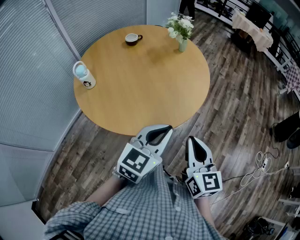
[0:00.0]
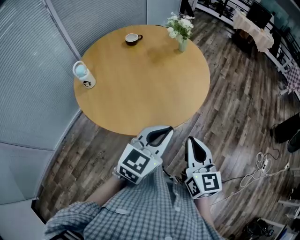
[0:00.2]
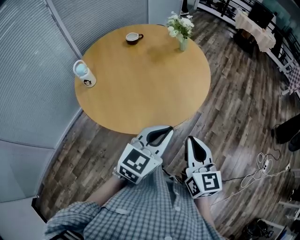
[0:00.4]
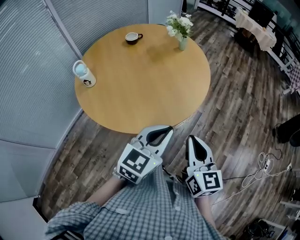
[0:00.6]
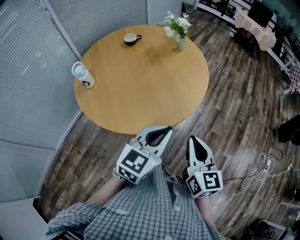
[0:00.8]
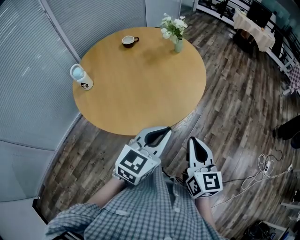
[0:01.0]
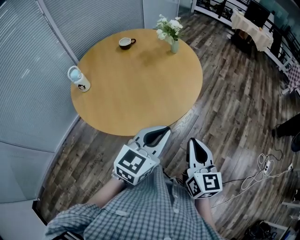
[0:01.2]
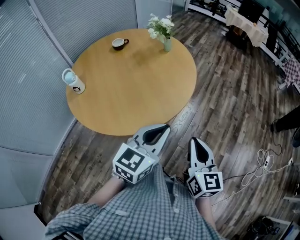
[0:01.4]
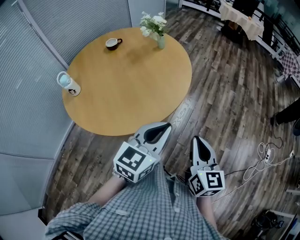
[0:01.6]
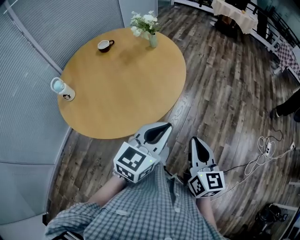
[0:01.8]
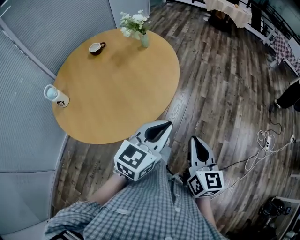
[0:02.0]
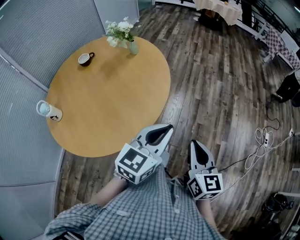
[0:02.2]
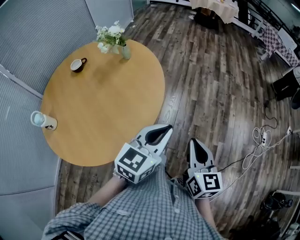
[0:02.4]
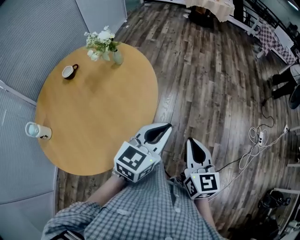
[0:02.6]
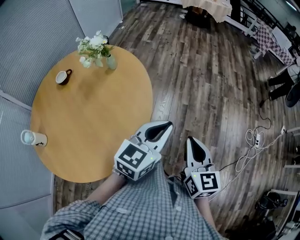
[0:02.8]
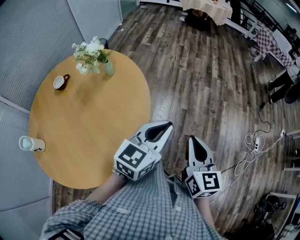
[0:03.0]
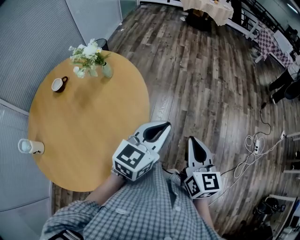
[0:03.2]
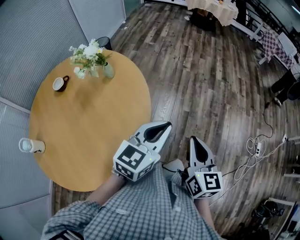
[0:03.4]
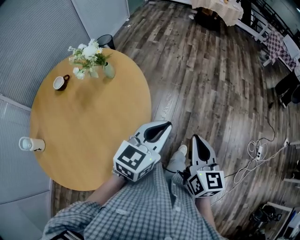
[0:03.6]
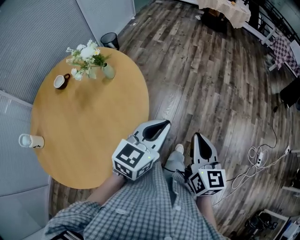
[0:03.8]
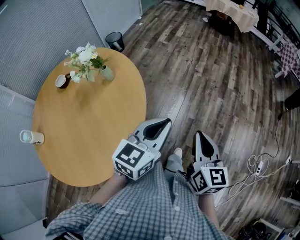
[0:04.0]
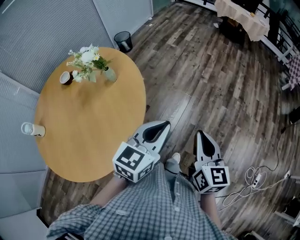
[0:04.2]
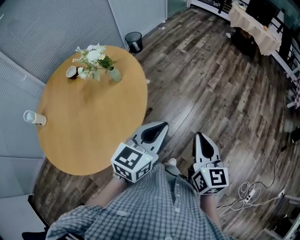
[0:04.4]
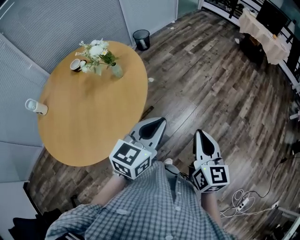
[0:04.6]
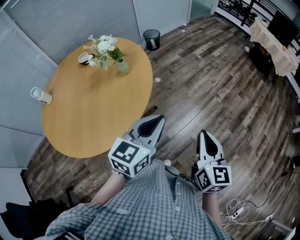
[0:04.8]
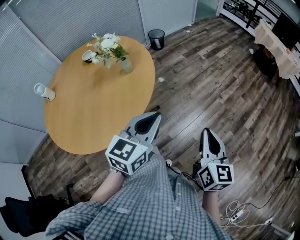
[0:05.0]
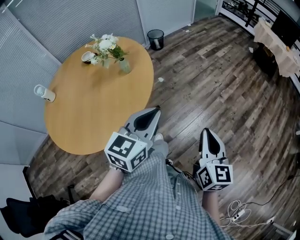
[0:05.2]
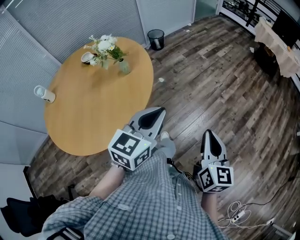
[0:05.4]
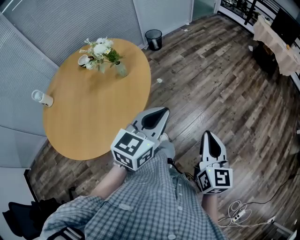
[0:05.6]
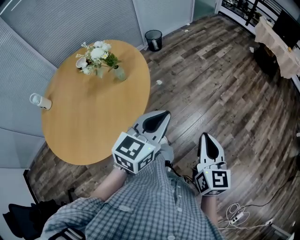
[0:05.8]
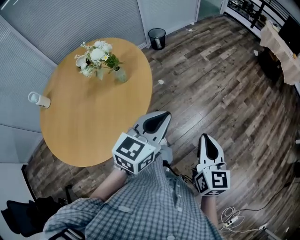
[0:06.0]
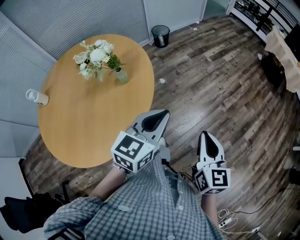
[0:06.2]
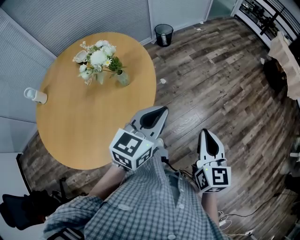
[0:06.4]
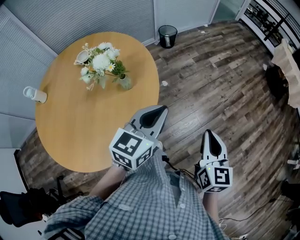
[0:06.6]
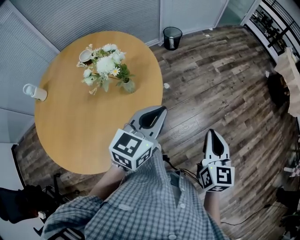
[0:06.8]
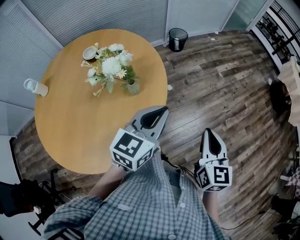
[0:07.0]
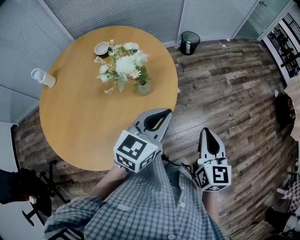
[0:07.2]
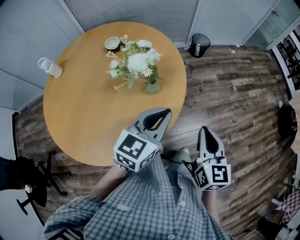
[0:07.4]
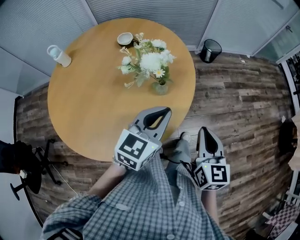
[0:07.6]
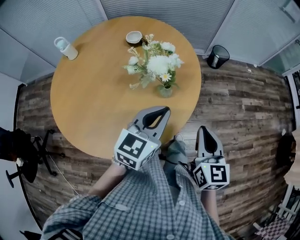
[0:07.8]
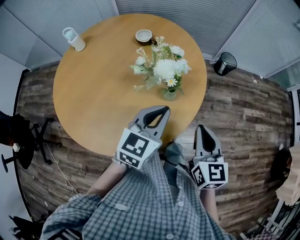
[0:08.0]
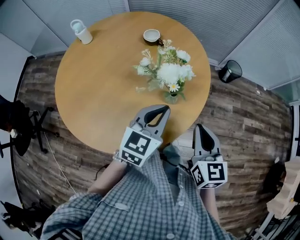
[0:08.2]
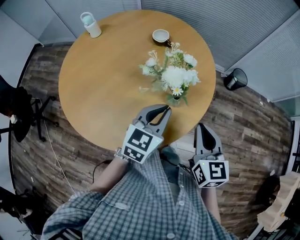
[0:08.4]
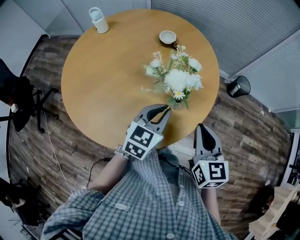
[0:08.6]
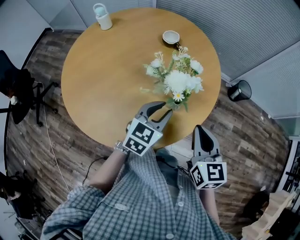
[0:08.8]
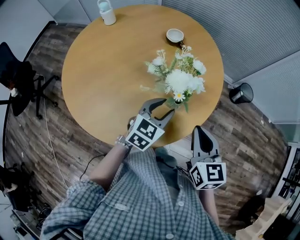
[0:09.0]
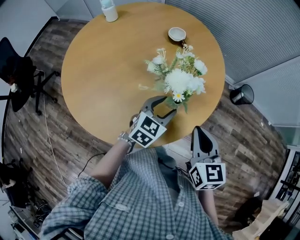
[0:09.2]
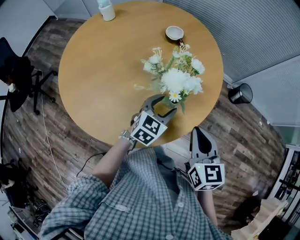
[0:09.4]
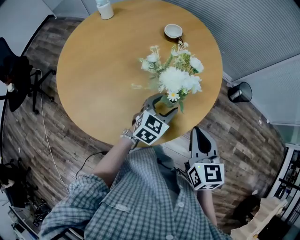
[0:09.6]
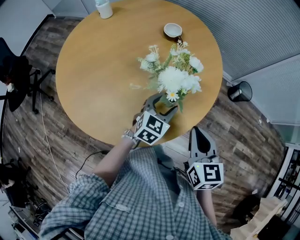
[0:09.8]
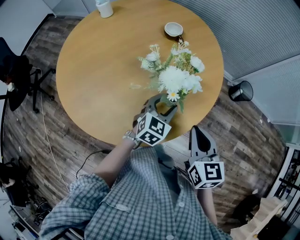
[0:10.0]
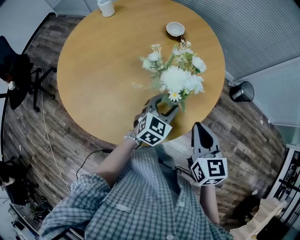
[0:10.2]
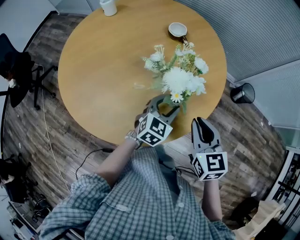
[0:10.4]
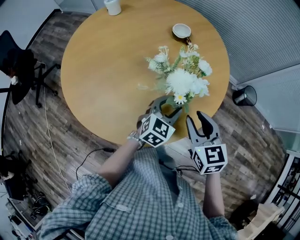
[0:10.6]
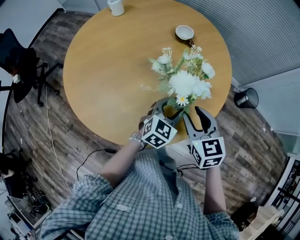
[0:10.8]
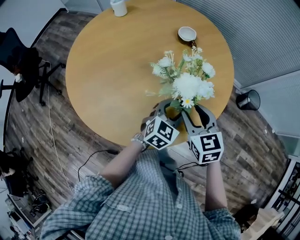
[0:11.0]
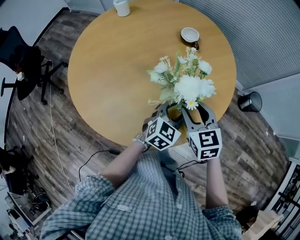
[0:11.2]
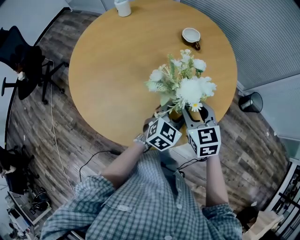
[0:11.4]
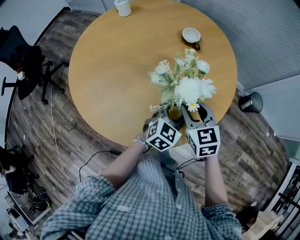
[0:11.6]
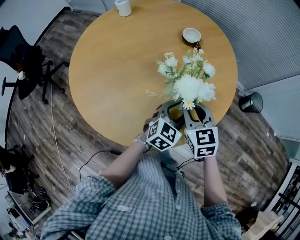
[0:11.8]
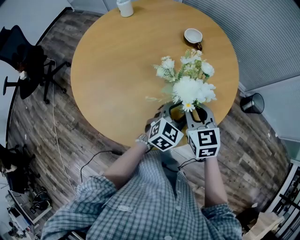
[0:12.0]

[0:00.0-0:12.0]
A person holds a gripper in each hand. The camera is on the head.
0:00.0 to 0:01.6: Both grippers move to the right, roughly 10 cm.
0:01.6 to 0:03.0: Both grippers move forward, approximately 25 cm.
0:03.0 to 0:04.4: The left gripper moves approximately 20 cm, and changes its angle by roughly 30 degrees, while the right gripper shifts by approximately 25 cm, and changes its angle by approximately 20 degrees.
0:04.4 to 0:06.0: Both grippers move forward, some 15 cm.
0:06.0 to 0:07.6: The left gripper moves about 25 cm, and changes its angle by about 30 degrees, while the right gripper shifts by roughly 30 cm, and swivels about 30 degrees.
0:07.6 to 0:09.0: The left gripper changes place by roughly 15 cm, rotates about 30 degrees, and opens its fingers. The right gripper shifts by some 15 cm, and rotates about 40 degrees.
0:09.0 to 0:10.4: The right gripper shifts by approximately 5 cm. The left gripper goes roughly 5 cm downward.
0:10.4 to 0:12.0: The right gripper goes about 10 cm forward and to the left.

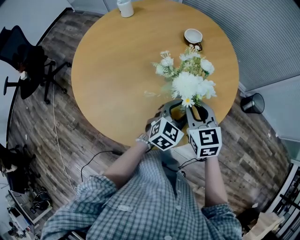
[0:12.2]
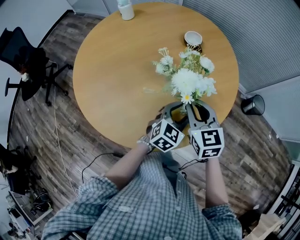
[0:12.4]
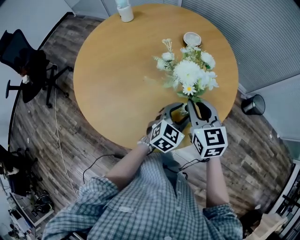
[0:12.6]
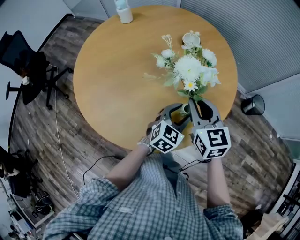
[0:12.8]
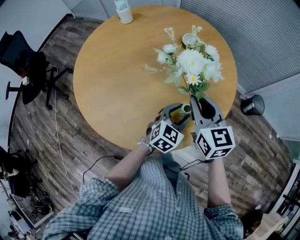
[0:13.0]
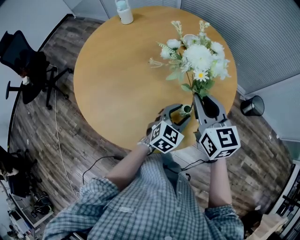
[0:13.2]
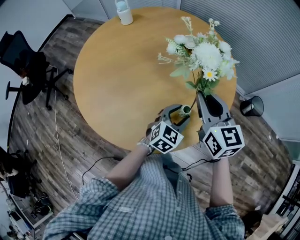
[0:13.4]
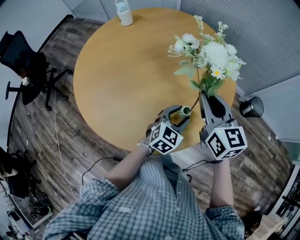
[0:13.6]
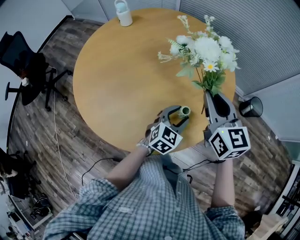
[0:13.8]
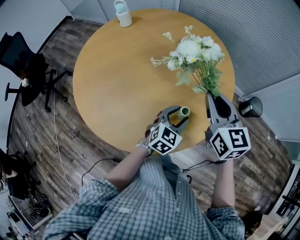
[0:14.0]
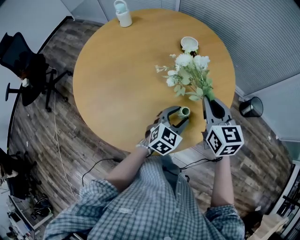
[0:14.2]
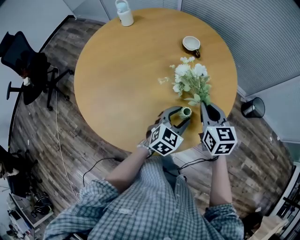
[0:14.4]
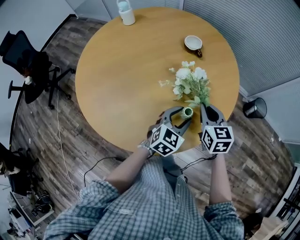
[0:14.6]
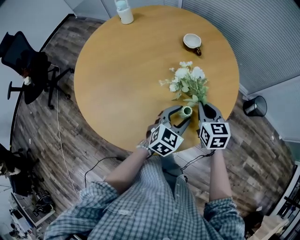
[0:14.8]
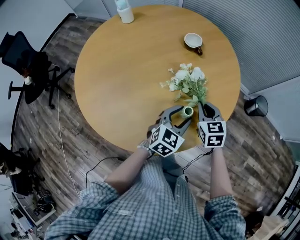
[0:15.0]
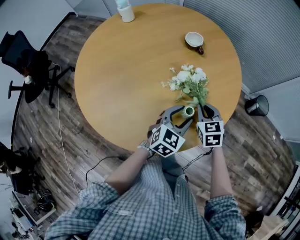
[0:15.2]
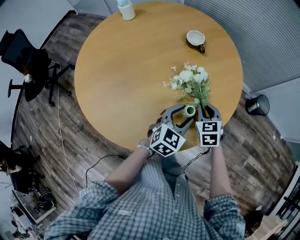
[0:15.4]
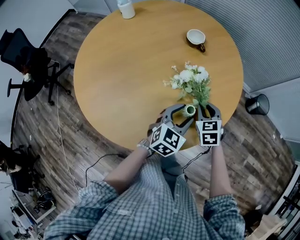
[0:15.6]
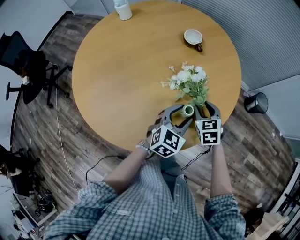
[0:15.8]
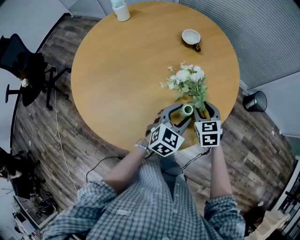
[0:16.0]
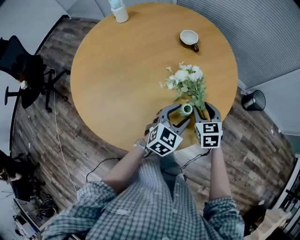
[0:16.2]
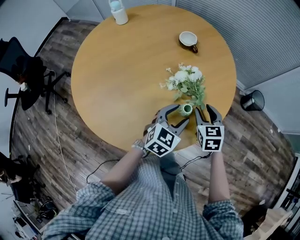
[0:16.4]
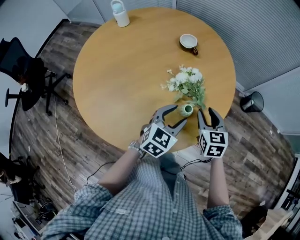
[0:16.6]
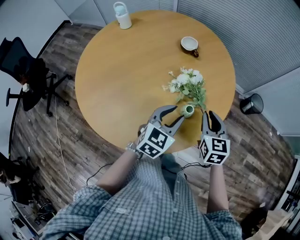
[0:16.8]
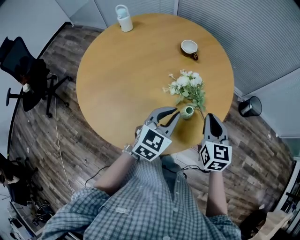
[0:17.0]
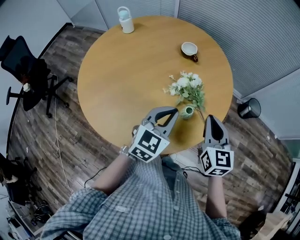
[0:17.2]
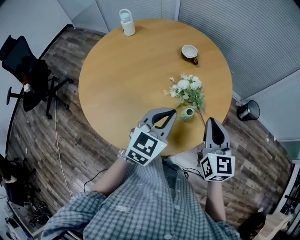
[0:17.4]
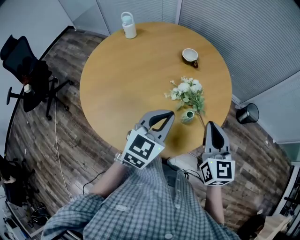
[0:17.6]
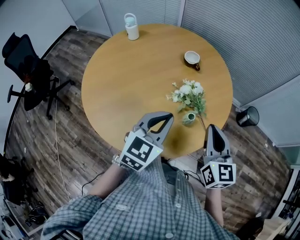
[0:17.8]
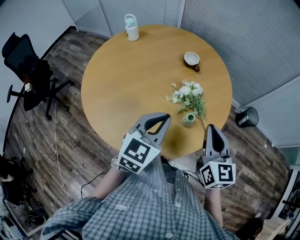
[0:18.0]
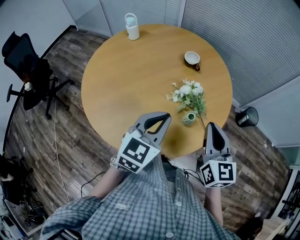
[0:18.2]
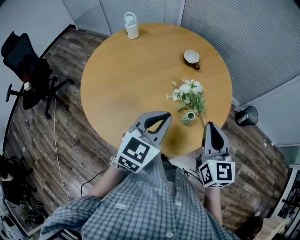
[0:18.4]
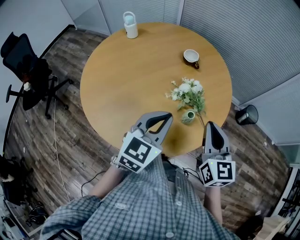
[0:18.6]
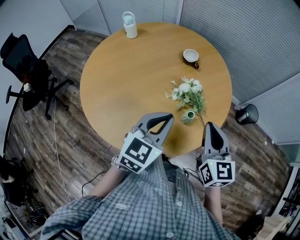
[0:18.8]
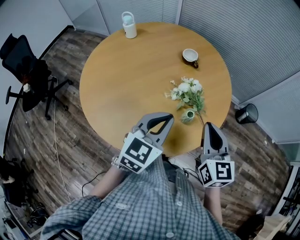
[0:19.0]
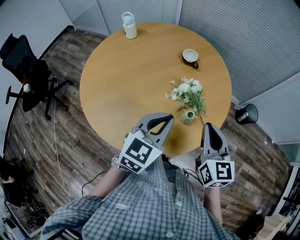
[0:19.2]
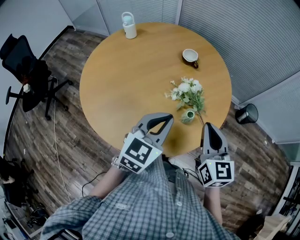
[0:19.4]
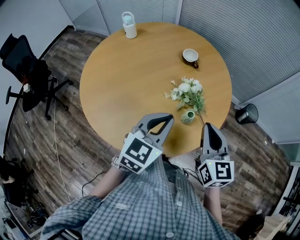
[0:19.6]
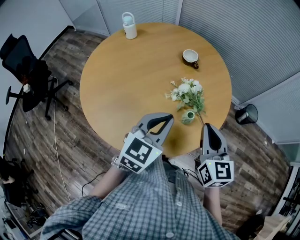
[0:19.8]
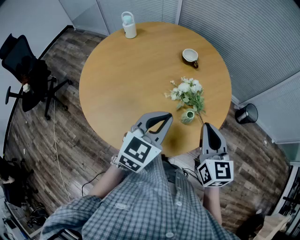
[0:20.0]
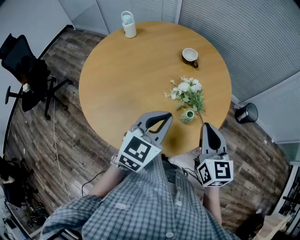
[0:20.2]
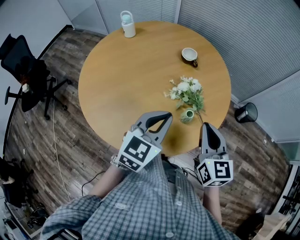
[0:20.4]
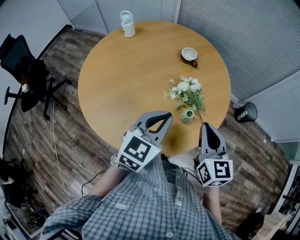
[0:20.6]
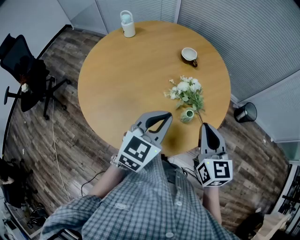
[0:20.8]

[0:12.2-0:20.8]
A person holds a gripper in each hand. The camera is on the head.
0:12.2 to 0:13.6: The right gripper moves upward, some 10 cm.
0:13.6 to 0:15.0: The right gripper goes approximately 15 cm downward, and turns by roughly 20 degrees.
0:15.0 to 0:16.6: The right gripper shifts by approximately 5 cm, and opens.
0:16.6 to 0:18.0: The left gripper is displaced upward and to the left by approximately 15 cm, and closes up. Meanwhile the right gripper travels upward and backward by approximately 20 cm, turns by roughly 20 degrees, and closes up.
0:18.0 to 0:19.4: The grippers make only small movements.
0:19.4 to 0:20.8: Both grippers stay about where they are.

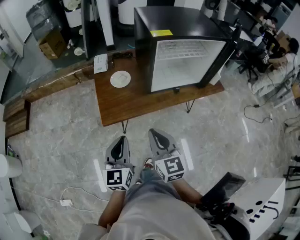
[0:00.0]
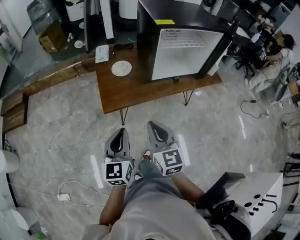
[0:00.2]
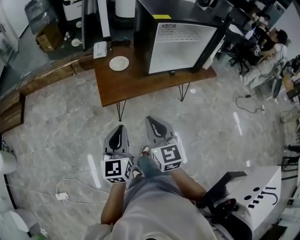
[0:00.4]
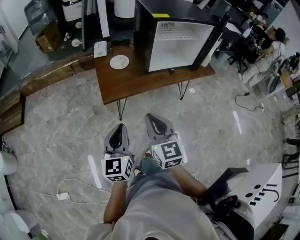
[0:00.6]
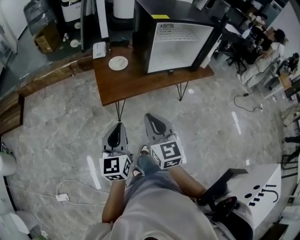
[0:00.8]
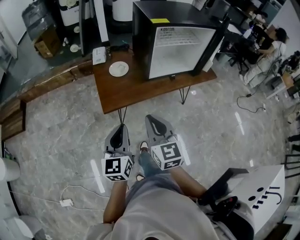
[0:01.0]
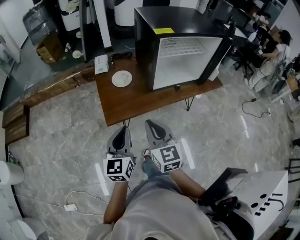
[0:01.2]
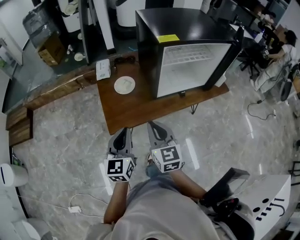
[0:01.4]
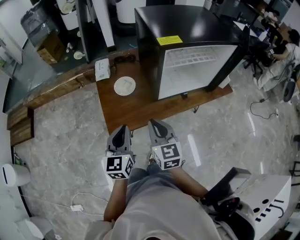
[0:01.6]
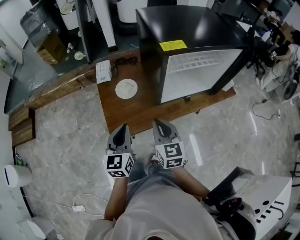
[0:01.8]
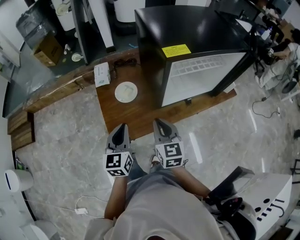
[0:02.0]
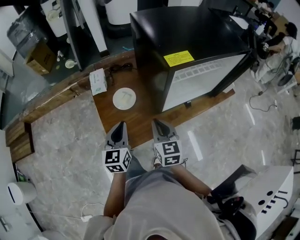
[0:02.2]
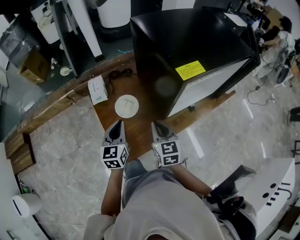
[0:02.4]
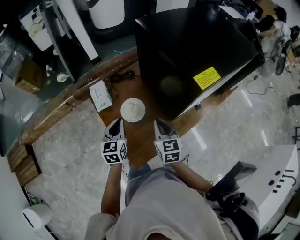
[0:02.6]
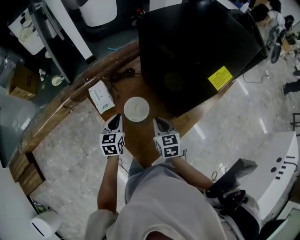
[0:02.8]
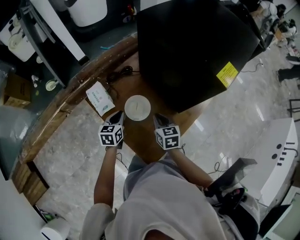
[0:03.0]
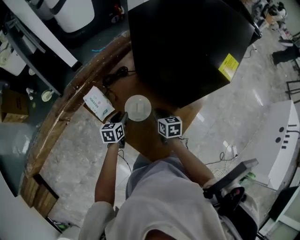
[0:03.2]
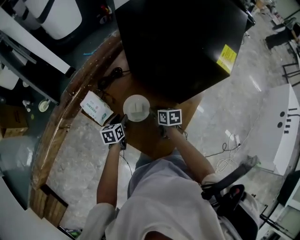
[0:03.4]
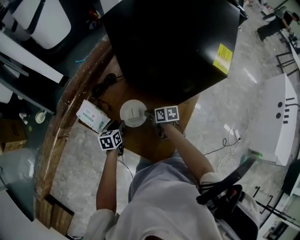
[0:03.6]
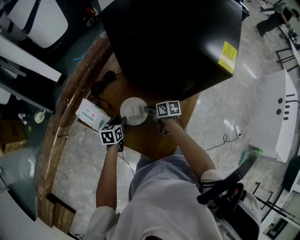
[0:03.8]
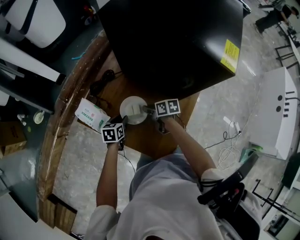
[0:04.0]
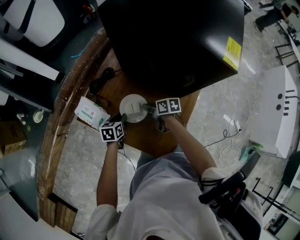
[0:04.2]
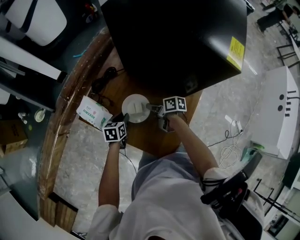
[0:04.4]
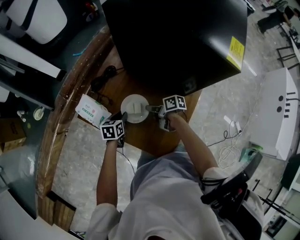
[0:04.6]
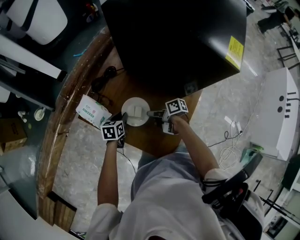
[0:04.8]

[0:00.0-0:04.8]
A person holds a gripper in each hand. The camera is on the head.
0:00.0 to 0:01.6: The grippers both shift forward by roughly 20 cm.
0:01.6 to 0:03.2: Both grippers are carried about 50 cm. The right gripper swivels approximately 40 degrees. The left gripper rotates some 50 degrees, and opens up.
0:03.2 to 0:04.8: Both grippers travel together downward, approximately 10 cm. The right gripper swivels about 60 degrees, and opens, then closes again.
